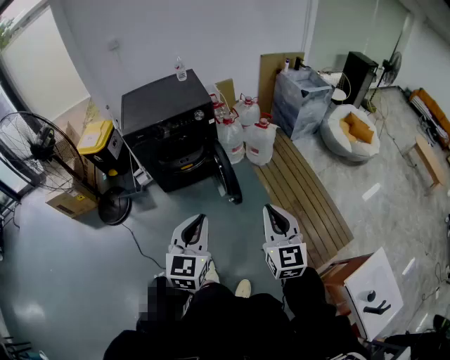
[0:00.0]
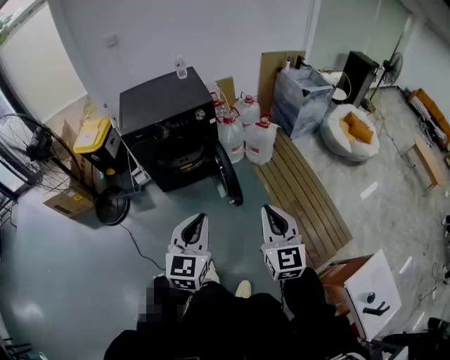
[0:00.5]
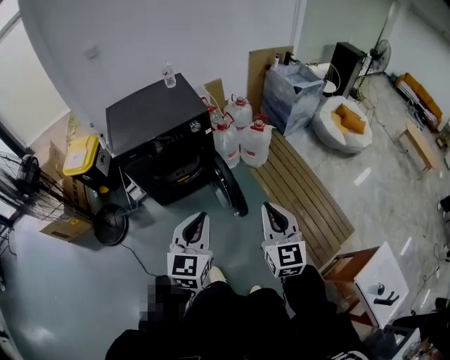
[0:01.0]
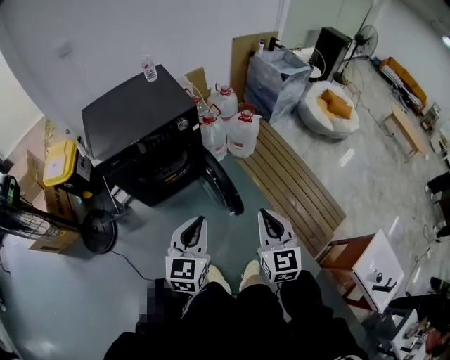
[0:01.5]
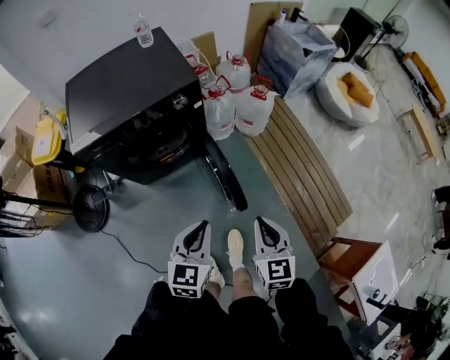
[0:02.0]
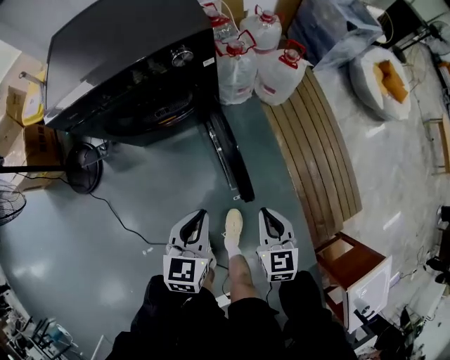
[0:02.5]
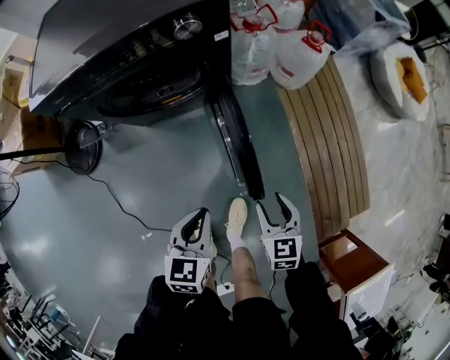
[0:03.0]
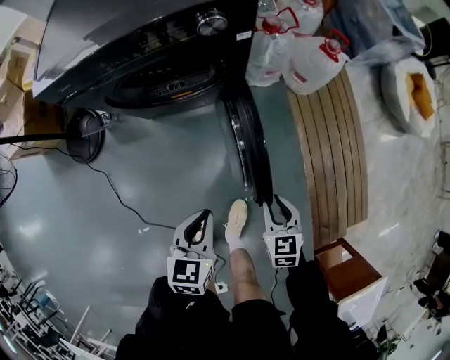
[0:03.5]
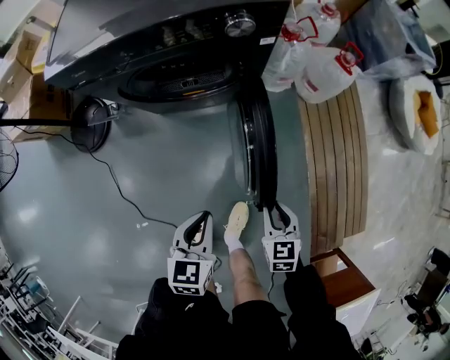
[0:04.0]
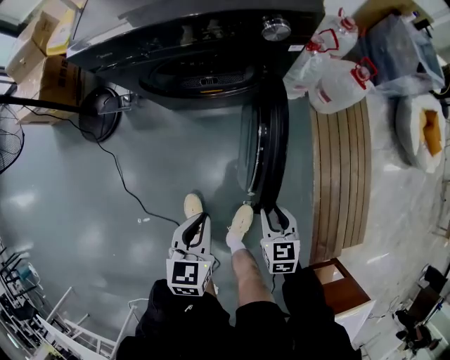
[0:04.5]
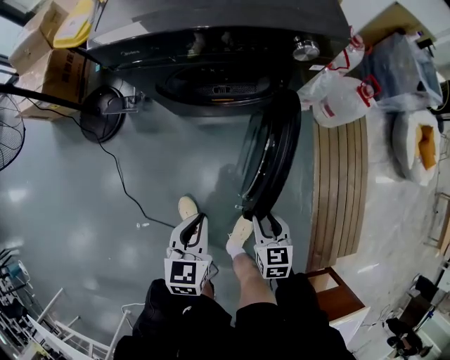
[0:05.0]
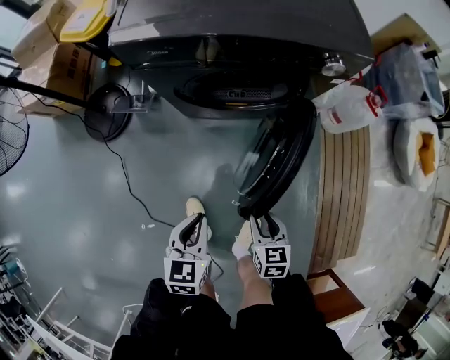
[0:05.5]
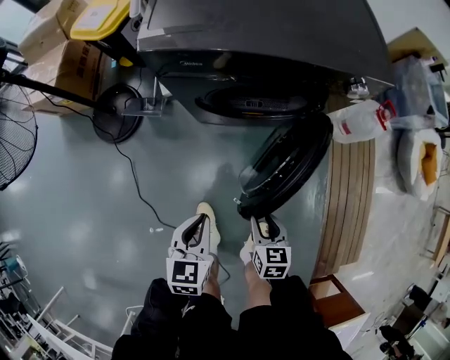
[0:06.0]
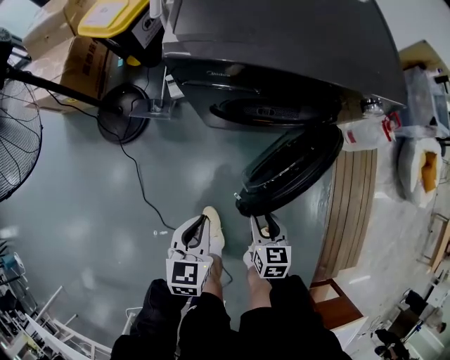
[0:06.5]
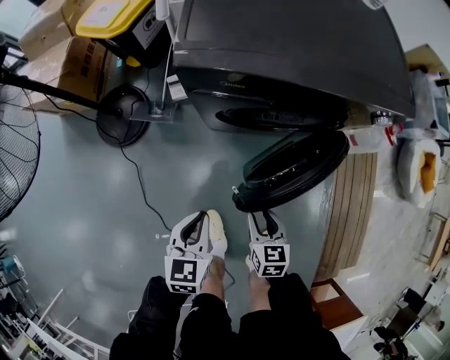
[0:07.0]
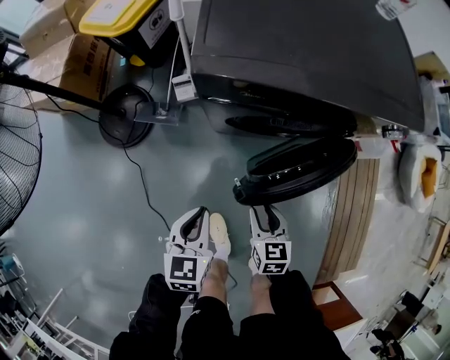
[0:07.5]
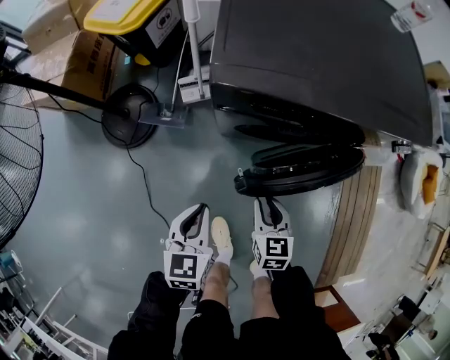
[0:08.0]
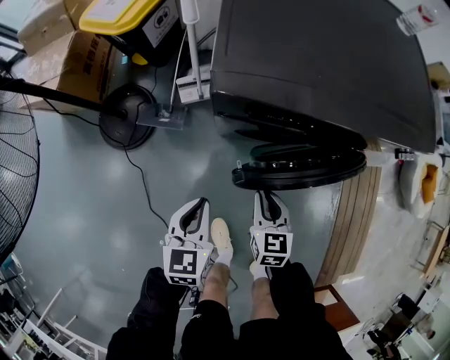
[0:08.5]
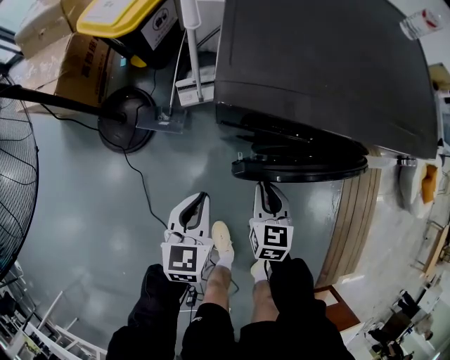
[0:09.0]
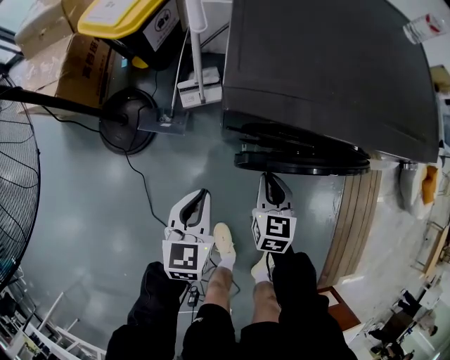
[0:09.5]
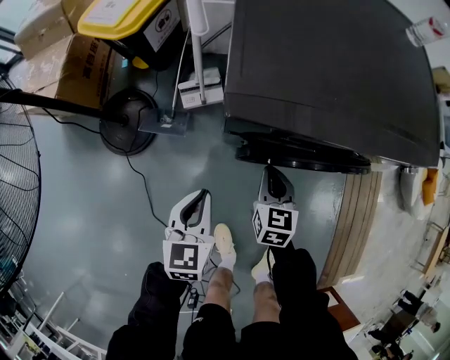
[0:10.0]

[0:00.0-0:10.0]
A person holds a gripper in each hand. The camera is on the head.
0:00.0 to 0:02.0: The right gripper travels forward, downward and to the left by roughly 40 cm, and rotates approximately 20 degrees, while the left gripper moves forward and downward, approximately 40 cm.
0:02.0 to 0:04.0: The grippers both shift downward by some 30 cm. The right gripper changes its angle by roughly 30 degrees, and opens, then closes once more. Meanwhile the left gripper changes its angle by approximately 30 degrees.
0:04.0 to 0:06.0: Both grippers move to the left, some 25 cm.
0:06.0 to 0:08.0: The left gripper travels to the left and forward by about 20 cm; the right gripper is displaced forward and to the left by approximately 25 cm.
0:08.0 to 0:10.0: Both grippers travel together forward, some 10 cm. The right gripper closes.

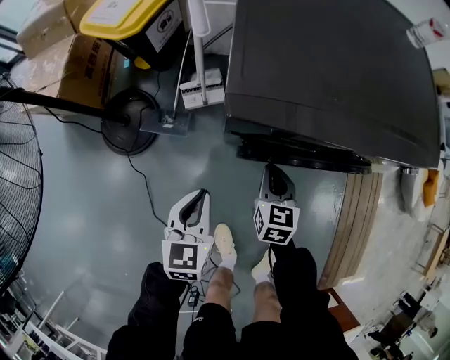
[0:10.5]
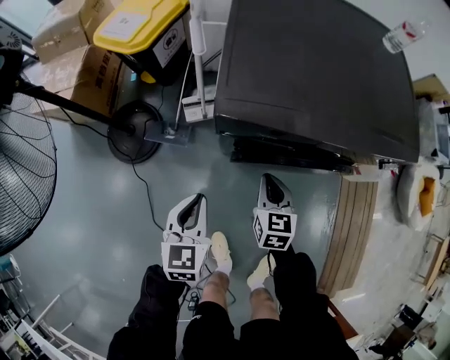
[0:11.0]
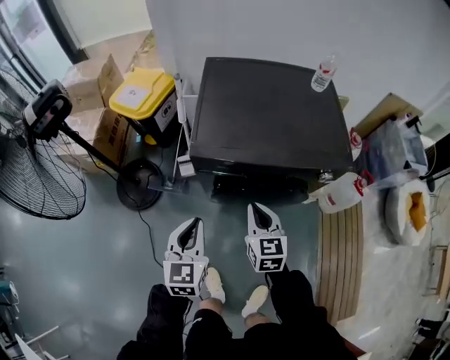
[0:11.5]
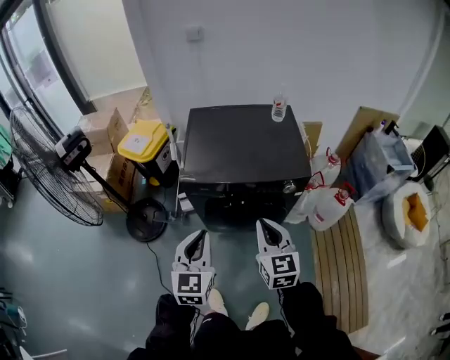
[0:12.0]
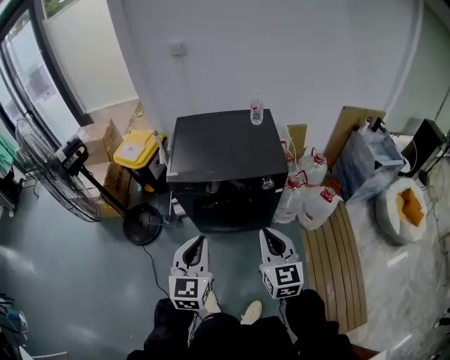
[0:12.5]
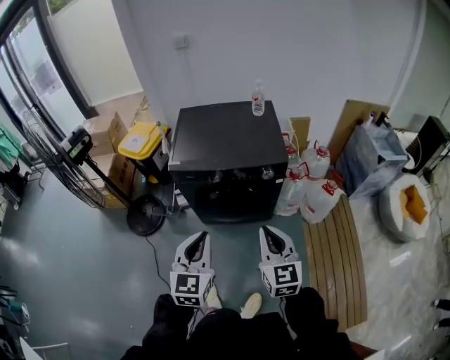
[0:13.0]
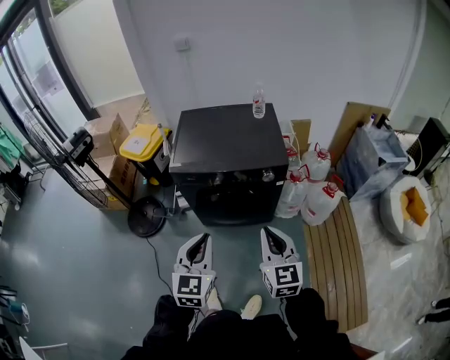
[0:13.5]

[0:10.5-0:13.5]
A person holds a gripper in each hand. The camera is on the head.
0:10.5 to 0:12.0: The right gripper travels upward, backward and to the right by some 60 cm, and turns by about 30 degrees. Meanwhile the left gripper is displaced upward, to the right and backward by roughly 50 cm, and swivels approximately 30 degrees.
0:12.0 to 0:13.5: The grippers both shift backward and to the right by approximately 15 cm.

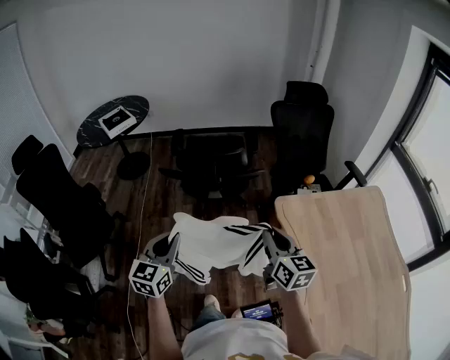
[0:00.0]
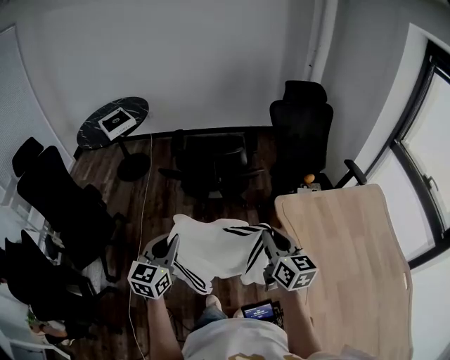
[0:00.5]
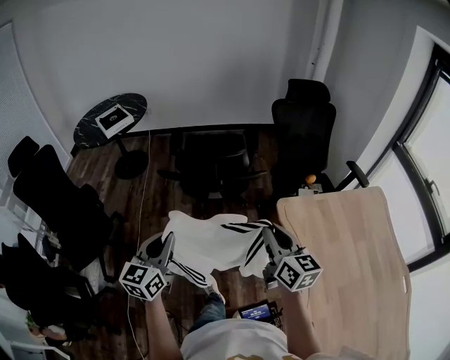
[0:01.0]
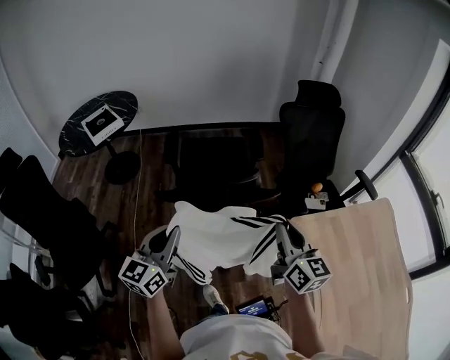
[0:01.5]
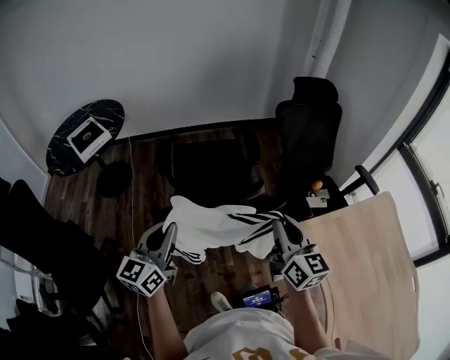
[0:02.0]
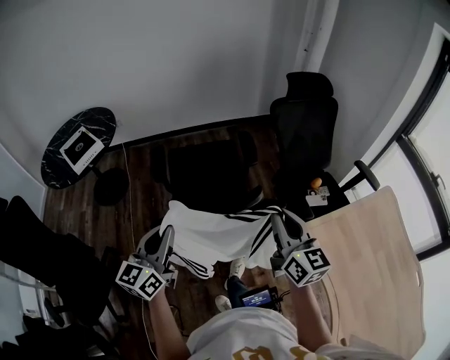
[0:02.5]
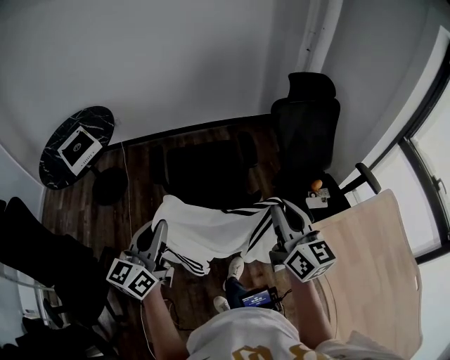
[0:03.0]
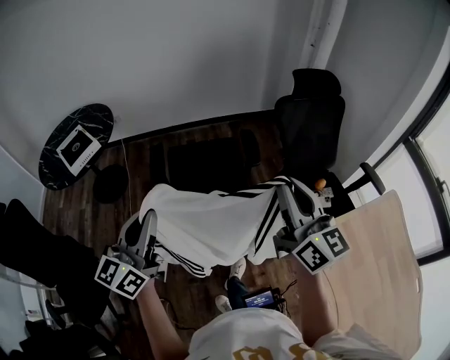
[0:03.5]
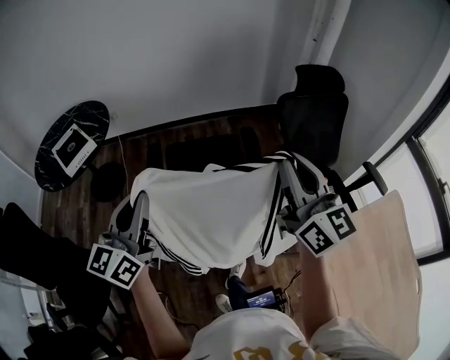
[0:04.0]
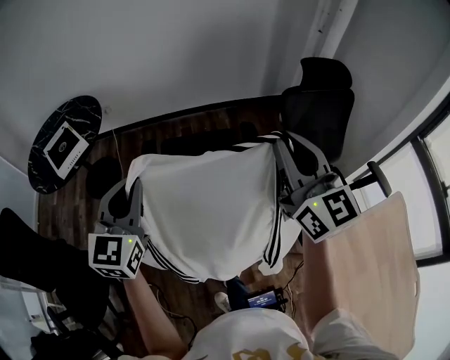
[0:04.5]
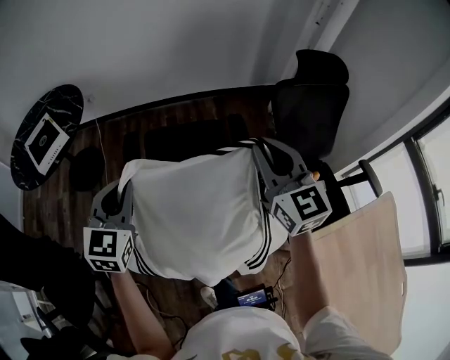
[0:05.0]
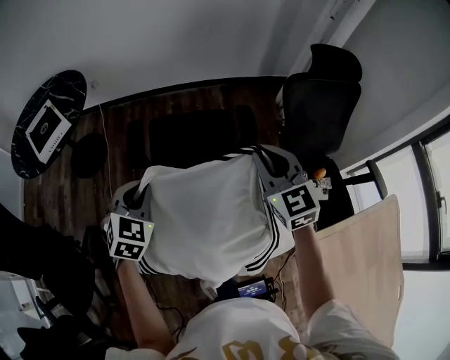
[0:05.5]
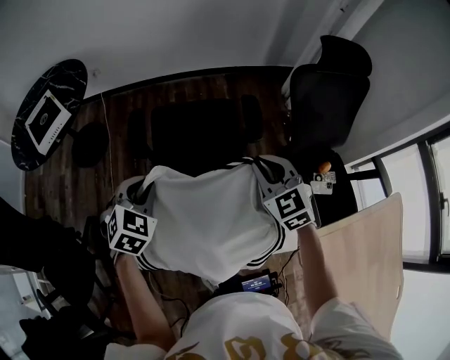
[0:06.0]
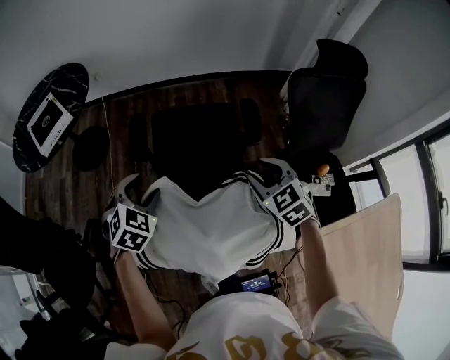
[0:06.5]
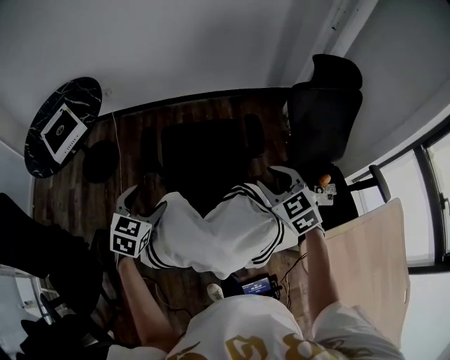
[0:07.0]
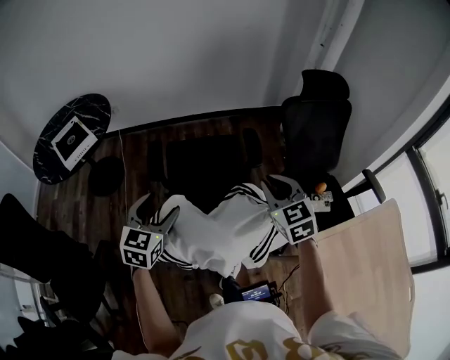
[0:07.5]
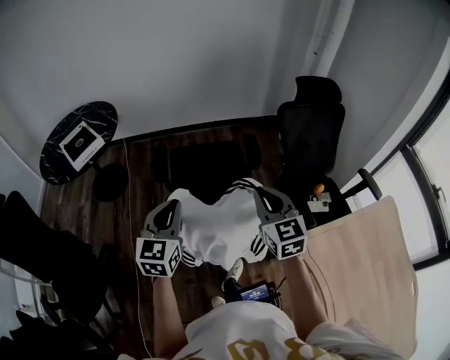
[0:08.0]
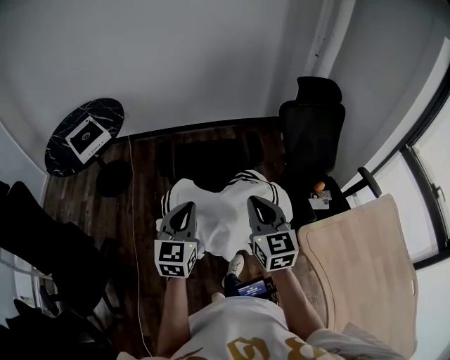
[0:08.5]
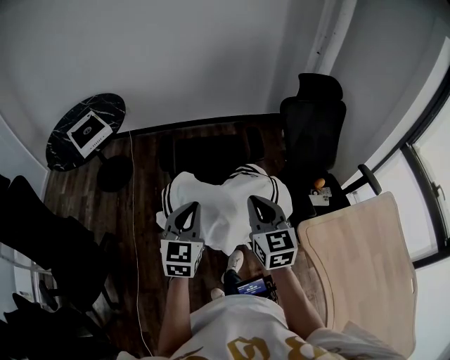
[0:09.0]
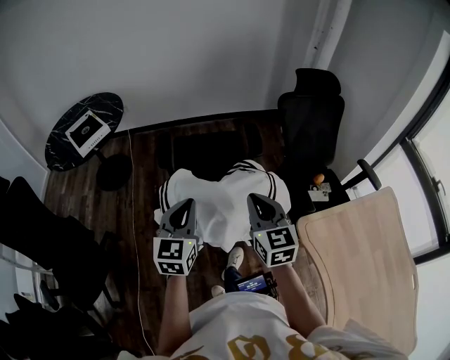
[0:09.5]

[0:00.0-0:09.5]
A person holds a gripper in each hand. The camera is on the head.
0:00.0 to 0:02.0: Both grippers move forward, approximately 25 cm. The left gripper rotates some 20 degrees.
0:02.0 to 0:04.0: Both grippers move forward and upward, roughly 20 cm.
0:04.0 to 0:05.5: The two grippers go some 25 cm downward and forward. The right gripper turns by roughly 40 degrees. Meanwhile the left gripper tips its fingers downward by some 40 degrees.
0:05.5 to 0:07.5: The left gripper moves backward and upward, roughly 10 cm, swivels approximately 20 degrees, and opens. The right gripper heads backward, covering approximately 10 cm, reaches roughly 10 cm downward, then returns, and opens, then closes once more.
0:07.5 to 0:09.5: The right gripper is displaced backward by some 15 cm. The left gripper travels backward and to the right by roughly 15 cm, and closes its fingers.

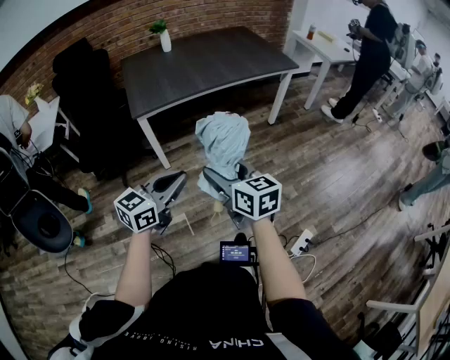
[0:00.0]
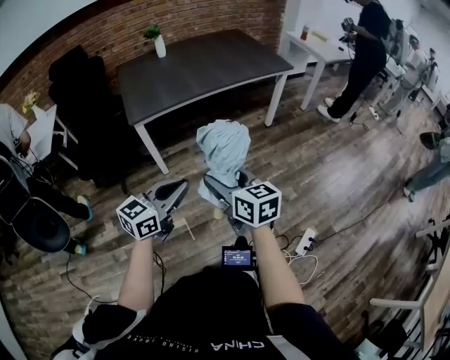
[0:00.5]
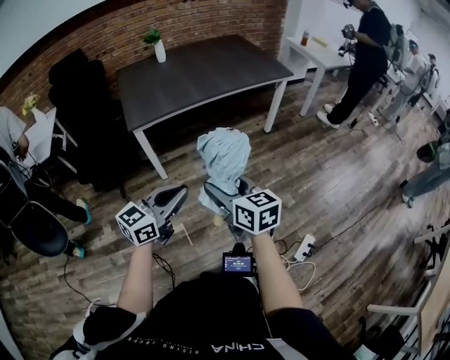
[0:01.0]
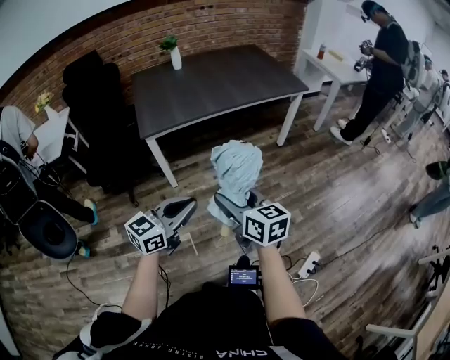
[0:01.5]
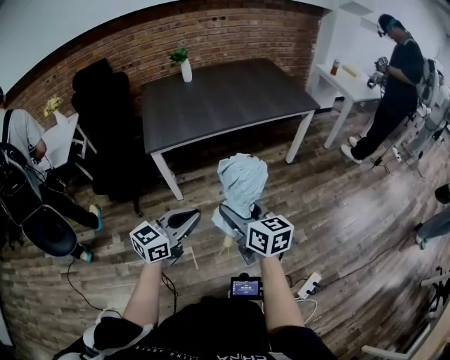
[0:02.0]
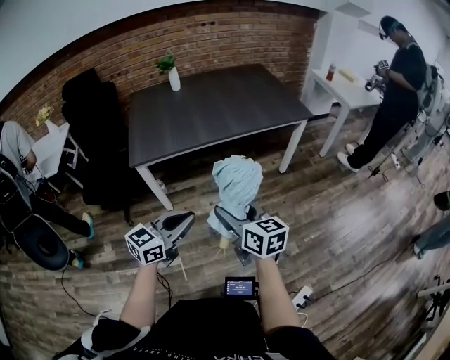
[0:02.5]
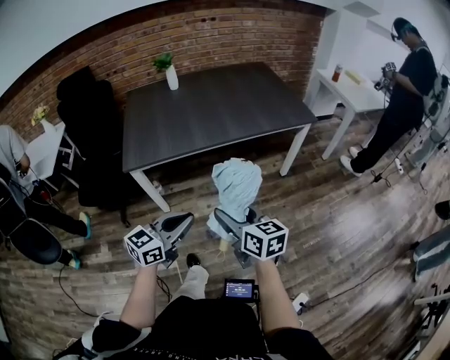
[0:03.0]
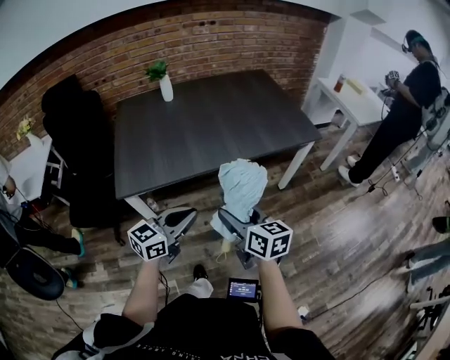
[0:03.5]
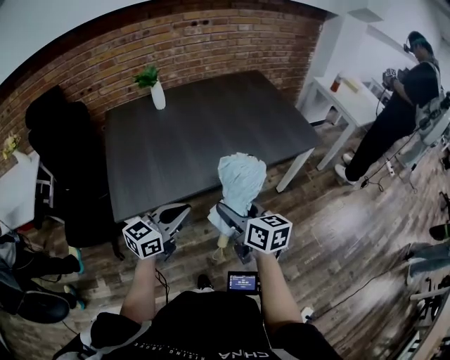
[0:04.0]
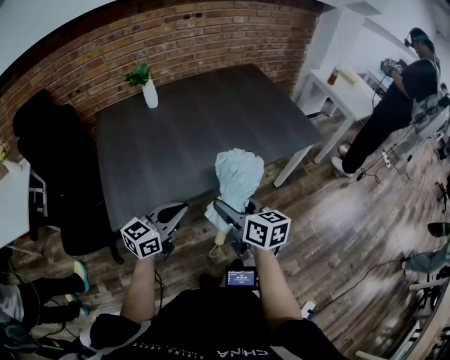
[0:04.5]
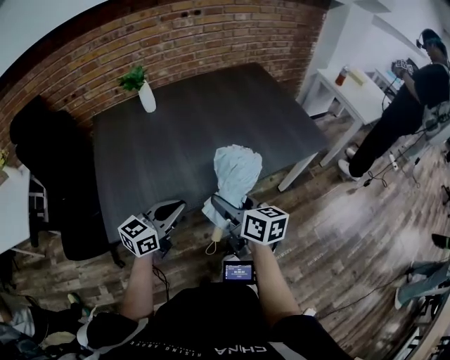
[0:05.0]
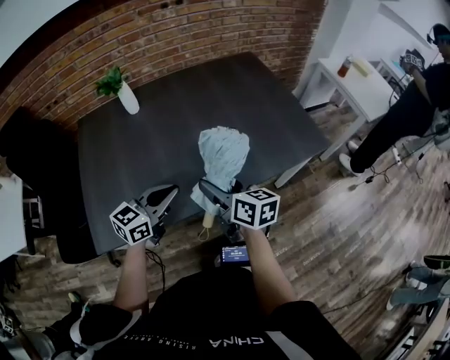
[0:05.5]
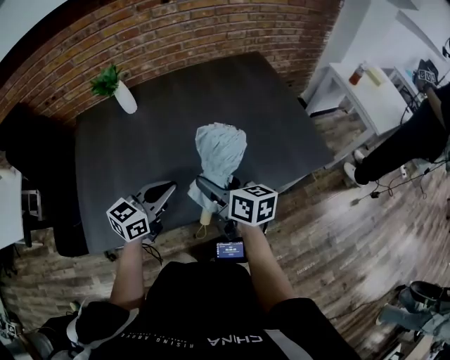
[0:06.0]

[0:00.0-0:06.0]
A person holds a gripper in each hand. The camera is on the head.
0:00.0 to 0:02.0: The two grippers go about 10 cm forward.
0:02.0 to 0:04.0: The grippers both shift forward by roughly 40 cm.
0:04.0 to 0:06.0: The two grippers go roughly 30 cm forward.
